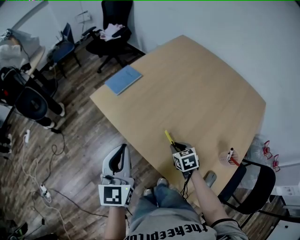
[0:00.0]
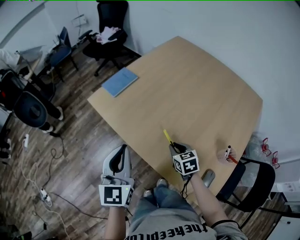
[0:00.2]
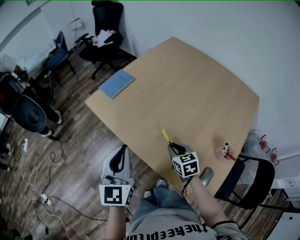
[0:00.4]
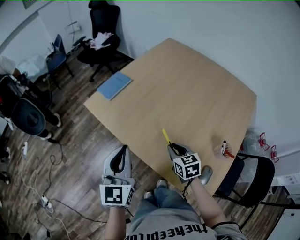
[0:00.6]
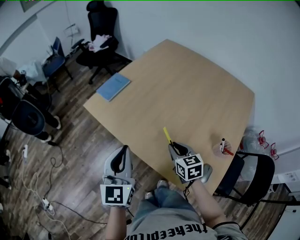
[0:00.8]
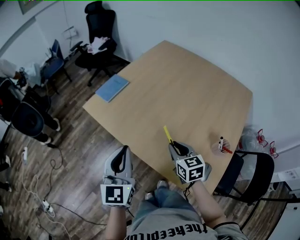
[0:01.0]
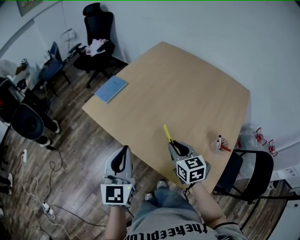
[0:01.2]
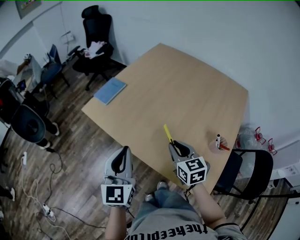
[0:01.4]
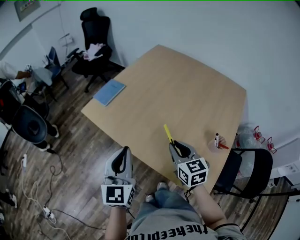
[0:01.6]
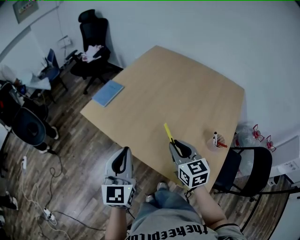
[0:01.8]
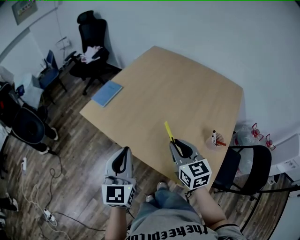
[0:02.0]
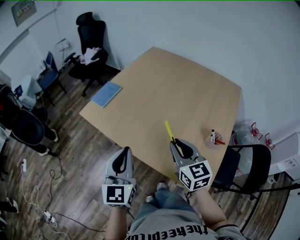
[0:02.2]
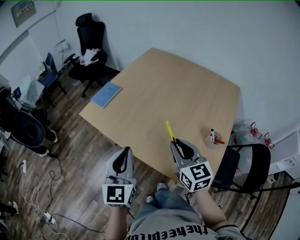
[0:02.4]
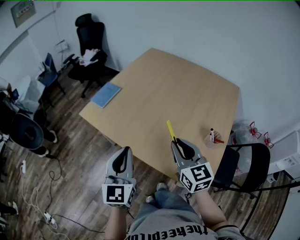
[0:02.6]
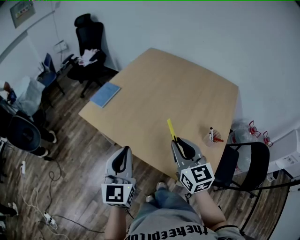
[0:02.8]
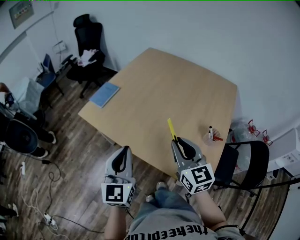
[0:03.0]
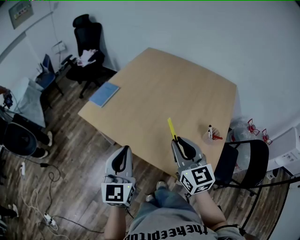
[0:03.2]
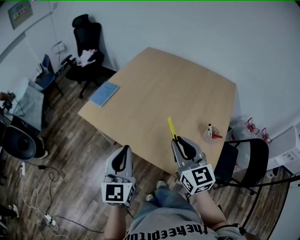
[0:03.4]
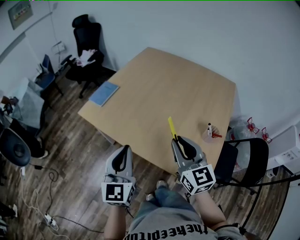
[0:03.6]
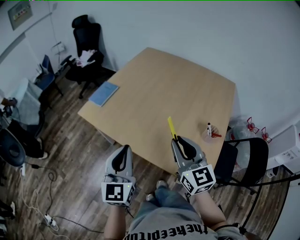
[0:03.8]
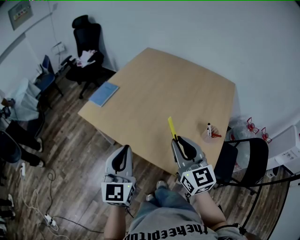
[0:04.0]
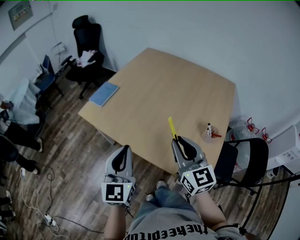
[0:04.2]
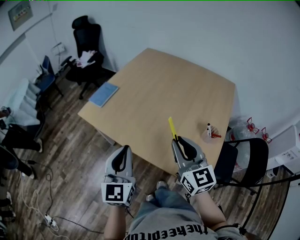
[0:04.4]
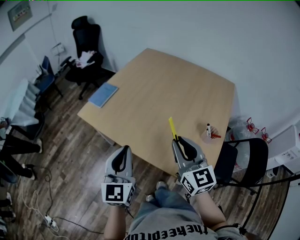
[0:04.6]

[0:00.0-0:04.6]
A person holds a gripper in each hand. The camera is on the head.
0:00.0 to 0:01.6: The right gripper goes roughly 15 cm upward, and swivels some 30 degrees. Meanwhile the left gripper moves roughly 5 cm.
0:01.6 to 0:03.0: The right gripper heads upward and backward, covering approximately 10 cm.
0:03.0 to 0:04.6: The grippers make only small movements.

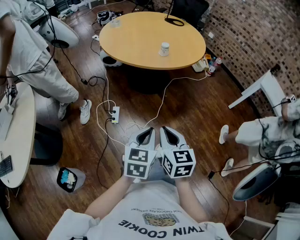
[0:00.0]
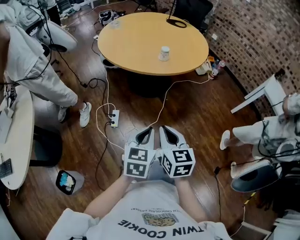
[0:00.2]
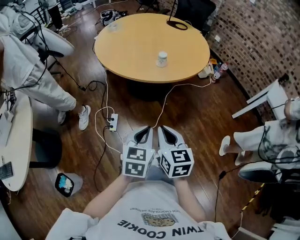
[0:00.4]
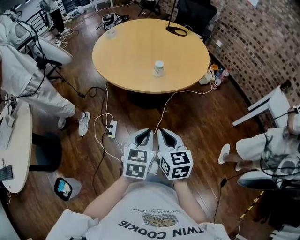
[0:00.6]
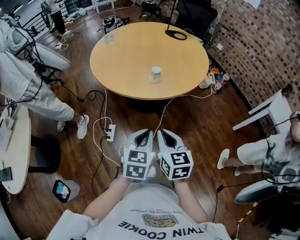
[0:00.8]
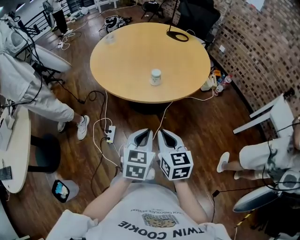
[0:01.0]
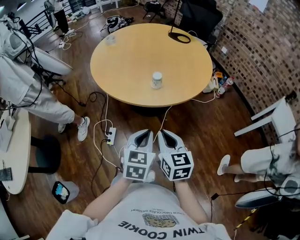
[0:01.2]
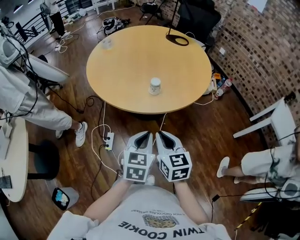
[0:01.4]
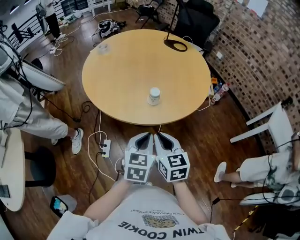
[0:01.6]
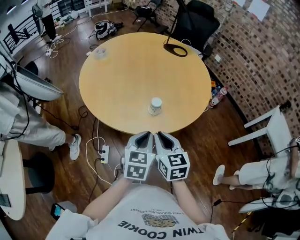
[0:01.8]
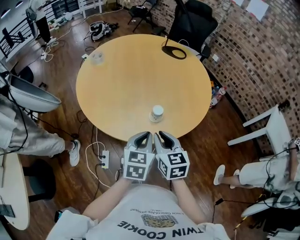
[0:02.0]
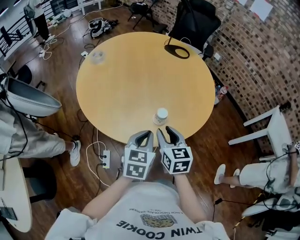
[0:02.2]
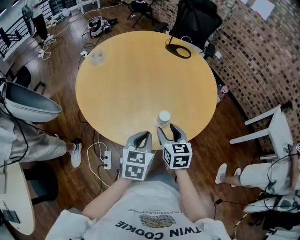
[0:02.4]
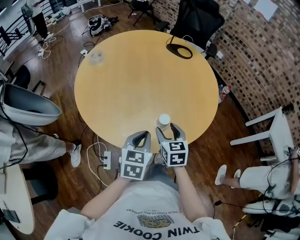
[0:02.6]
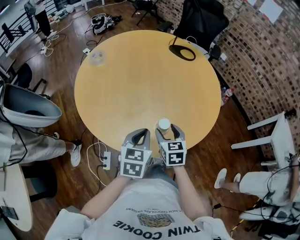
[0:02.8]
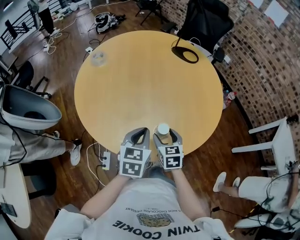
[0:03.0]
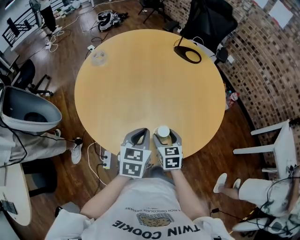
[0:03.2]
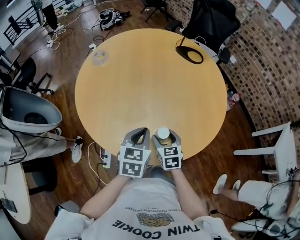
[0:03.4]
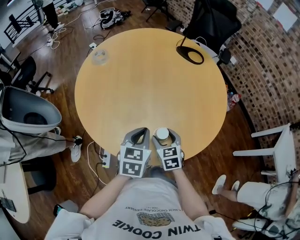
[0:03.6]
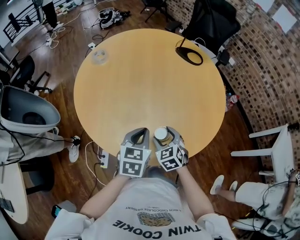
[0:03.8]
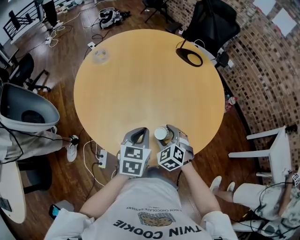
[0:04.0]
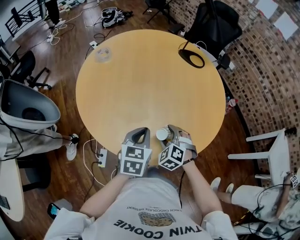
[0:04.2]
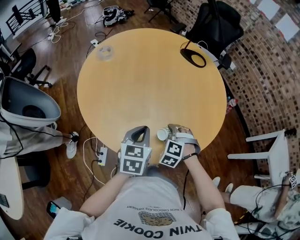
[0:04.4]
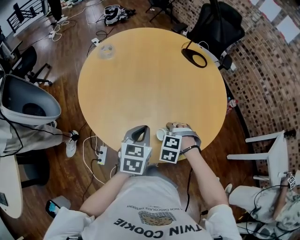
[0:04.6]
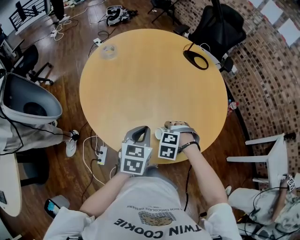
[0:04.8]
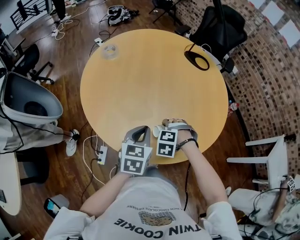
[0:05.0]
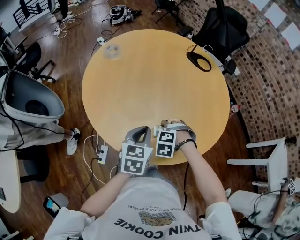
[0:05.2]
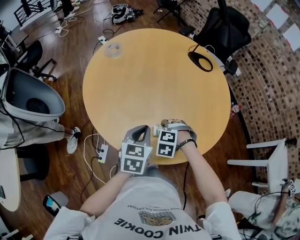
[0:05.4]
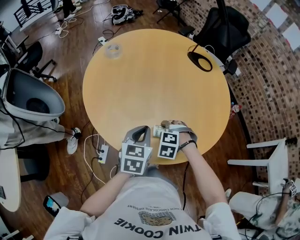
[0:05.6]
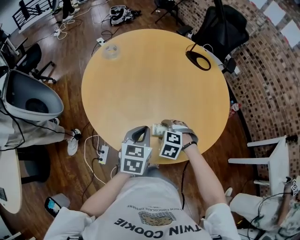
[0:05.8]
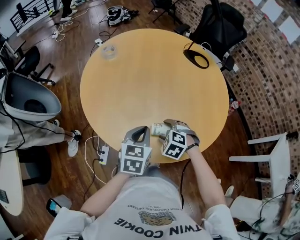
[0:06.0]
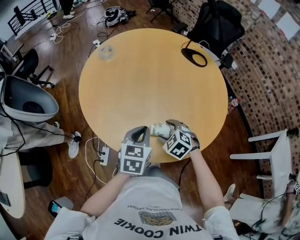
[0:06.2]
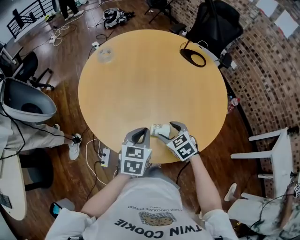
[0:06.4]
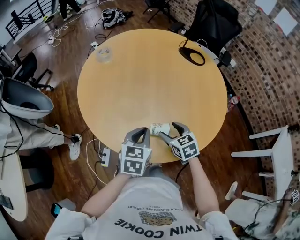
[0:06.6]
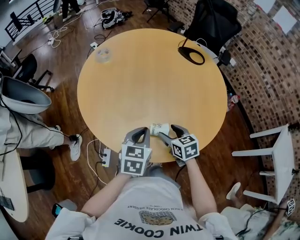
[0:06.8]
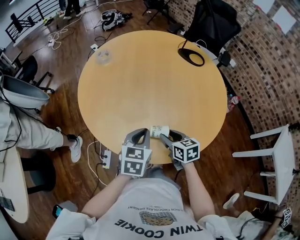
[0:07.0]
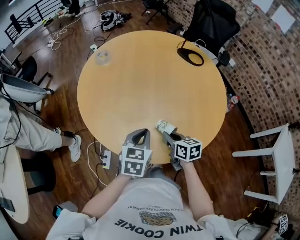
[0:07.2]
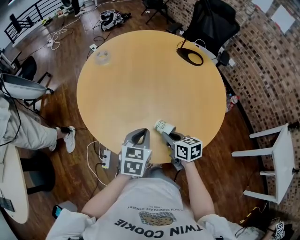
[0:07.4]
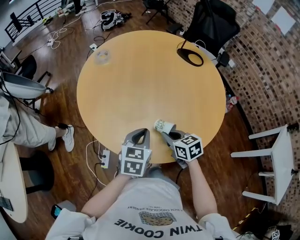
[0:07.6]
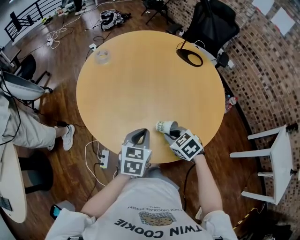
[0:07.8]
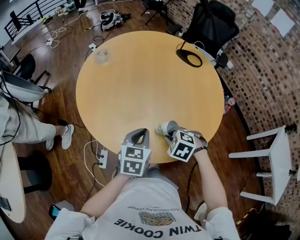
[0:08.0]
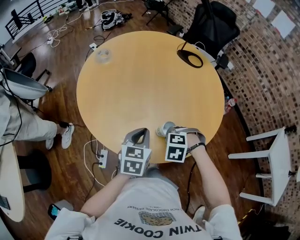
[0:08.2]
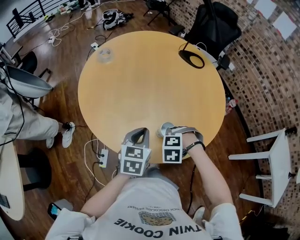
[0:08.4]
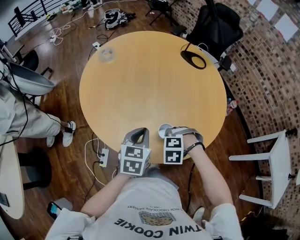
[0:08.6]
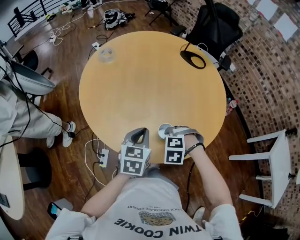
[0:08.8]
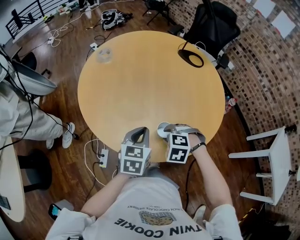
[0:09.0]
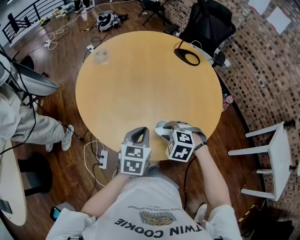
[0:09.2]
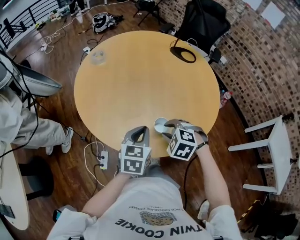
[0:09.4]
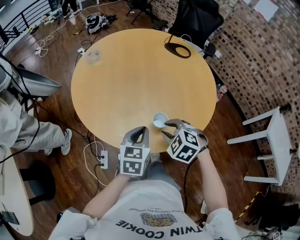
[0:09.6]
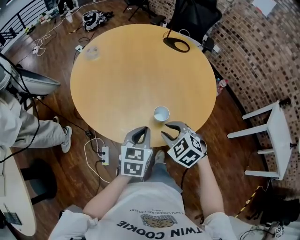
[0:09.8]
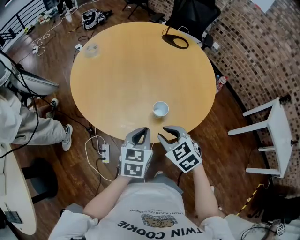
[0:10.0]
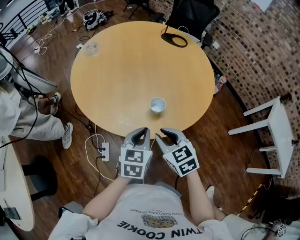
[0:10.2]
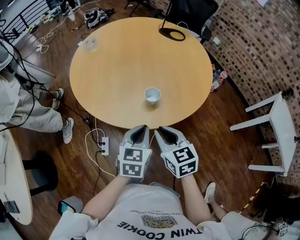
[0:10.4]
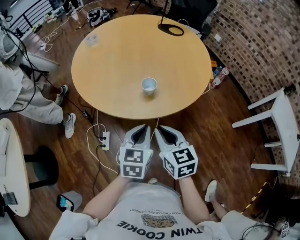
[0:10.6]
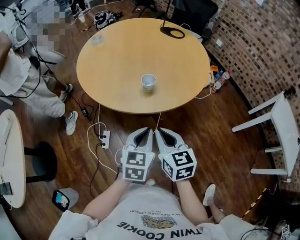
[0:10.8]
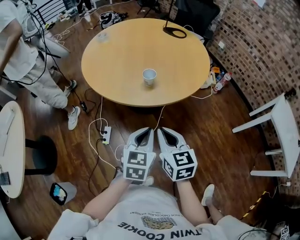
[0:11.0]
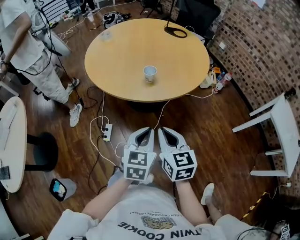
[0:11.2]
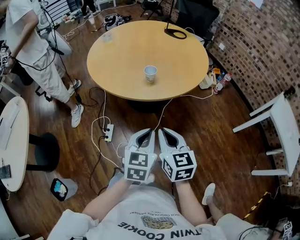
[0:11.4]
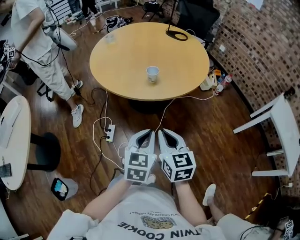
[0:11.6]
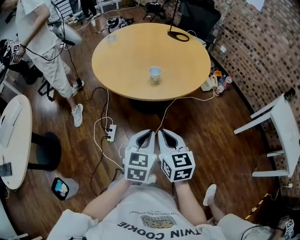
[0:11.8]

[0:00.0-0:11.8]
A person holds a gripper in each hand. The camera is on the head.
0:00.0 to 0:01.4: Both grippers move forward and to the right, about 35 cm.
0:01.4 to 0:03.0: The right gripper shifts approximately 35 cm forward and downward, and opens. The left gripper travels forward by about 30 cm.
0:03.0 to 0:04.4: The right gripper rolls counterclockwise, seen from behind, by roughly 70 degrees.
0:04.4 to 0:06.0: The grippers move only a little.
0:06.0 to 0:07.4: The right gripper rotates around the line of its fingers by approximately 70 degrees, clockwise from behind, and closes.
0:07.4 to 0:08.8: The right gripper rotates around the line of its fingers by some 80 degrees, counterclockwise from behind.
0:08.8 to 0:10.4: The right gripper moves about 20 cm, and twists about 70 degrees clockwise, seen from behind, while the left gripper changes place by about 15 cm.
0:10.4 to 0:11.8: The two grippers go about 20 cm backward.

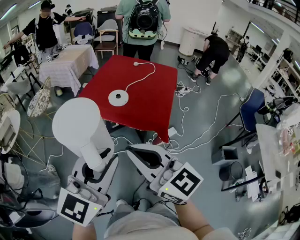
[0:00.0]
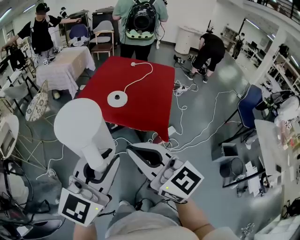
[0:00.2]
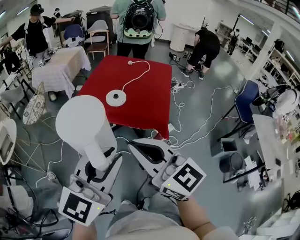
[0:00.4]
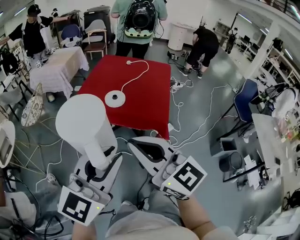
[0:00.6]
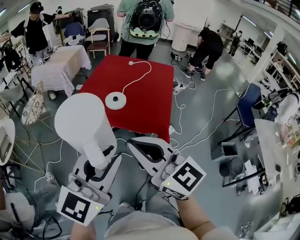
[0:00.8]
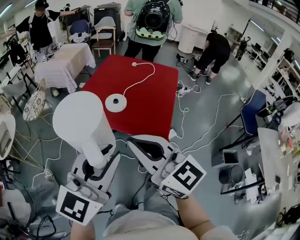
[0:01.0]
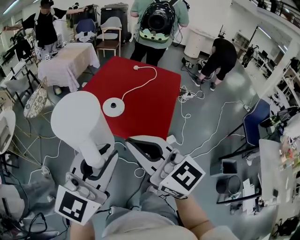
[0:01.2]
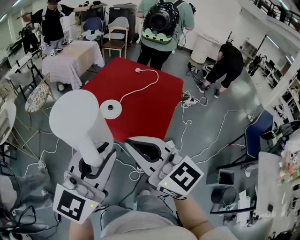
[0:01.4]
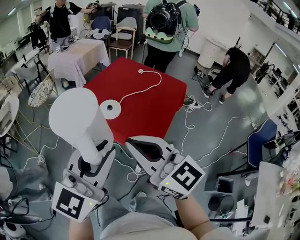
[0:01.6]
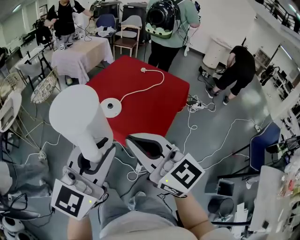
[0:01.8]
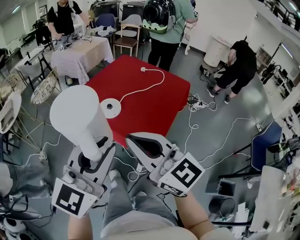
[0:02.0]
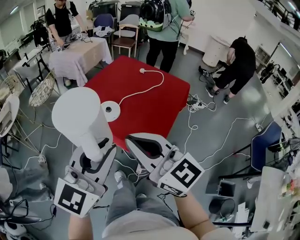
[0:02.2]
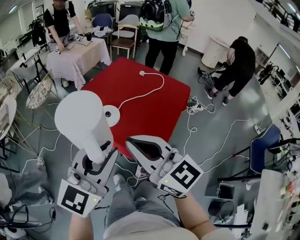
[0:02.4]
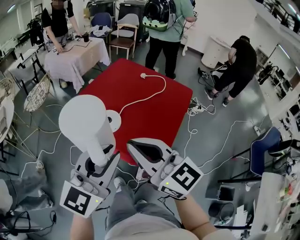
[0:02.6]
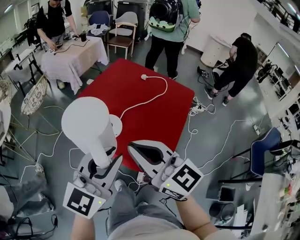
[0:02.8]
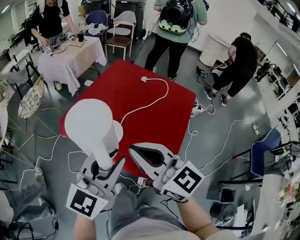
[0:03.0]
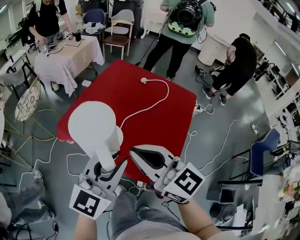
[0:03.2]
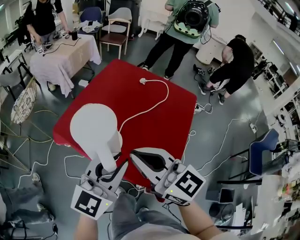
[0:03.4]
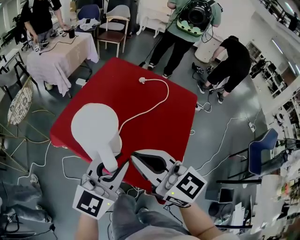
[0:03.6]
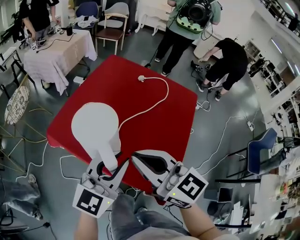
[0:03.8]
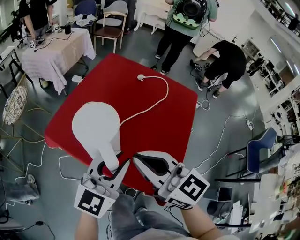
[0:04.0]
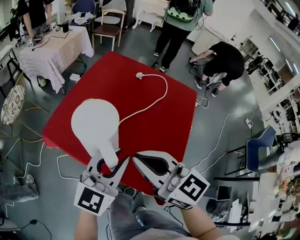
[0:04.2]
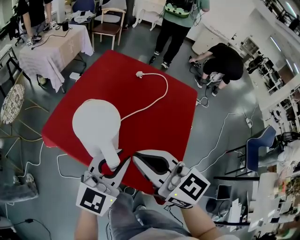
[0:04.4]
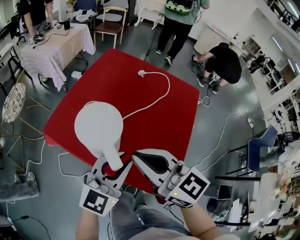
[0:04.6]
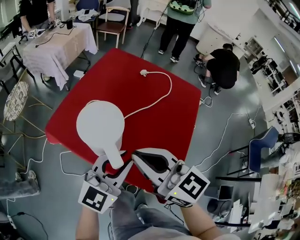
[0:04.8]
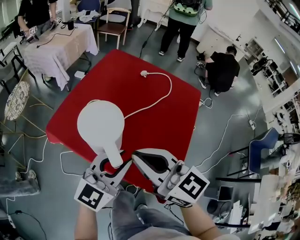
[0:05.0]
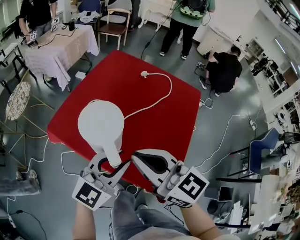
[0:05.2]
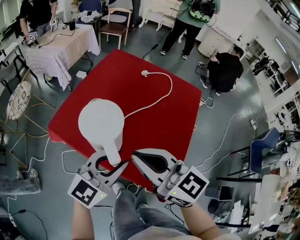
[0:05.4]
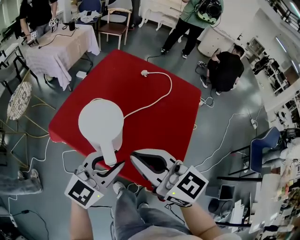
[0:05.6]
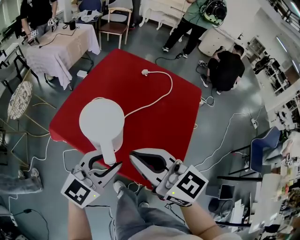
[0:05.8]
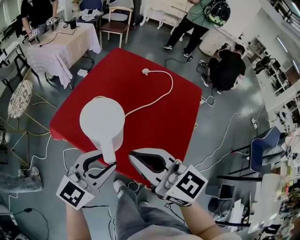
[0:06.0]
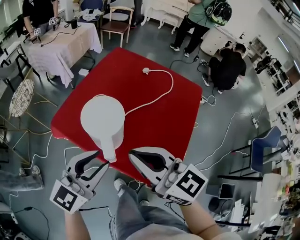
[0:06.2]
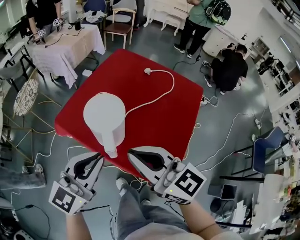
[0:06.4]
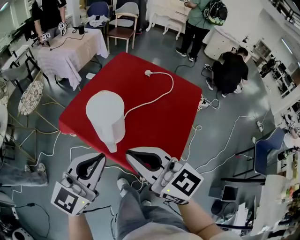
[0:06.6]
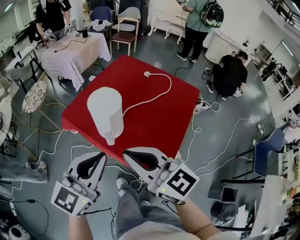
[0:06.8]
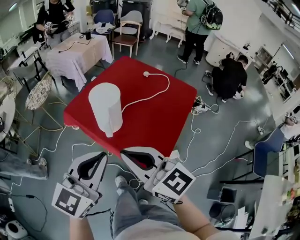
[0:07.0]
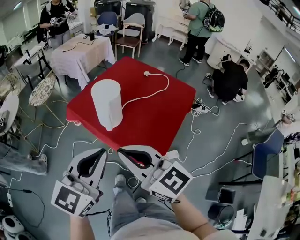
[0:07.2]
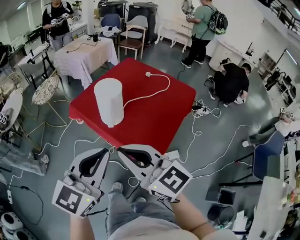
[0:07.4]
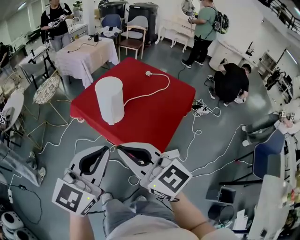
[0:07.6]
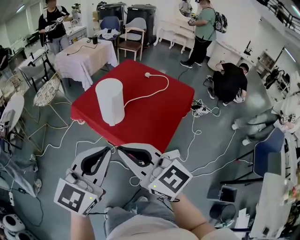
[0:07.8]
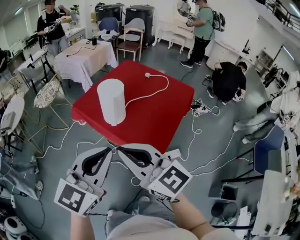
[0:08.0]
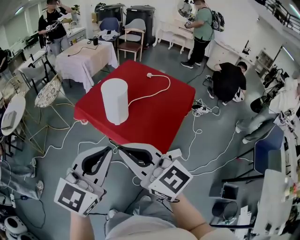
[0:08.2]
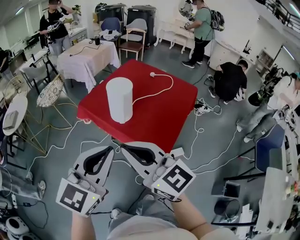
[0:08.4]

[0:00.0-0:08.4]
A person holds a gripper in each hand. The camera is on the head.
0:00.0 to 0:01.4: Both grippers travel together forward and to the right, some 15 cm.
0:01.4 to 0:02.8: The left gripper goes about 20 cm forward and downward. Meanwhile the right gripper shifts approximately 15 cm forward.
0:02.8 to 0:04.2: Both grippers move forward and downward, some 15 cm.
0:04.2 to 0:05.6: The grippers make only small movements.
0:05.6 to 0:07.0: The right gripper goes some 15 cm backward, while the left gripper moves backward and upward, approximately 20 cm, rotates roughly 20 degrees, and closes up.
0:07.0 to 0:08.4: The left gripper moves backward, approximately 10 cm. Meanwhile the right gripper goes approximately 10 cm backward and to the left.
